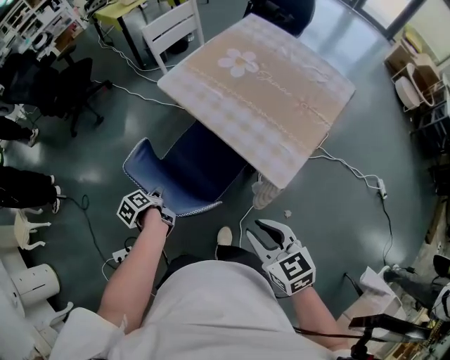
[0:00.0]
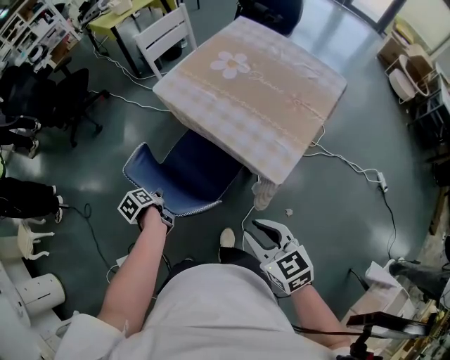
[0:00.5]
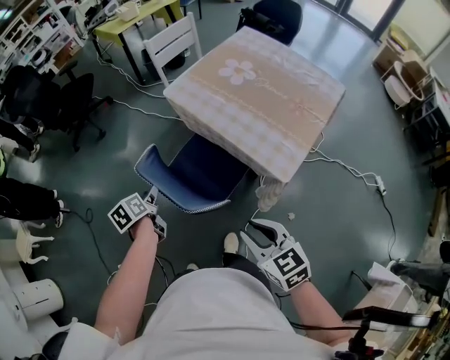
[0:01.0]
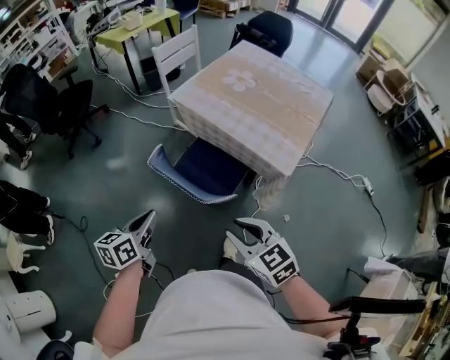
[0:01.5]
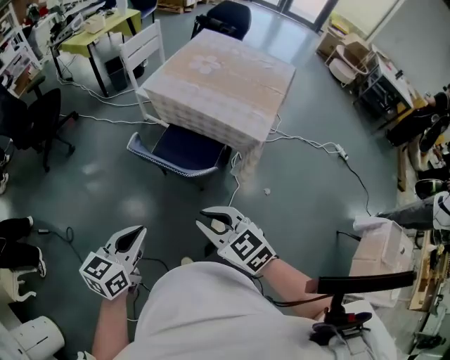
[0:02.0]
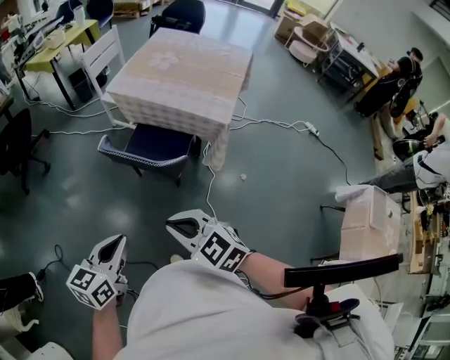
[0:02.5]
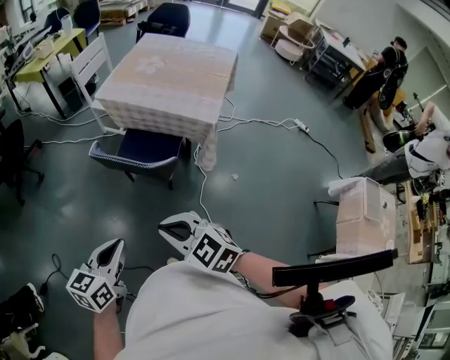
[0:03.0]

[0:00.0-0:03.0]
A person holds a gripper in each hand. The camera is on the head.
0:00.0 to 0:01.5: The right gripper heads to the left, covering roughly 15 cm; the left gripper is displaced upward, backward and to the left by approximately 25 cm, turns by about 60 degrees, and opens and closes again.
0:01.5 to 0:03.0: The left gripper shifts approximately 20 cm backward, and changes its angle by about 30 degrees; the right gripper is displaced backward and to the left by roughly 20 cm, and closes up.

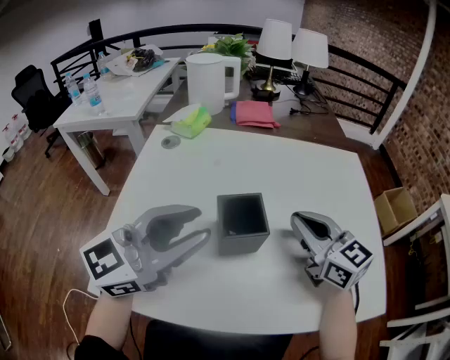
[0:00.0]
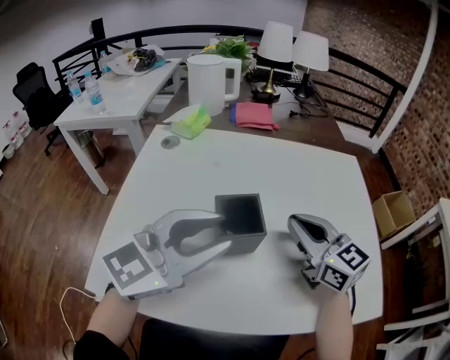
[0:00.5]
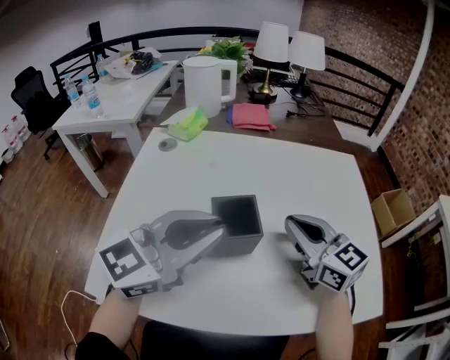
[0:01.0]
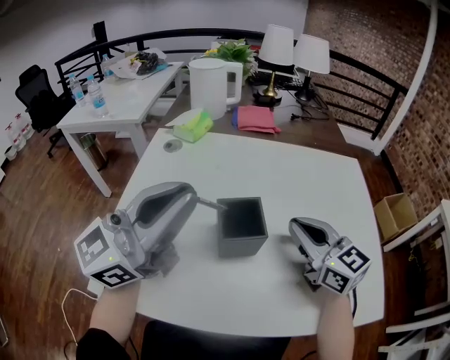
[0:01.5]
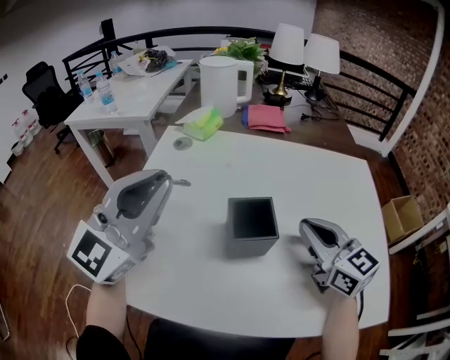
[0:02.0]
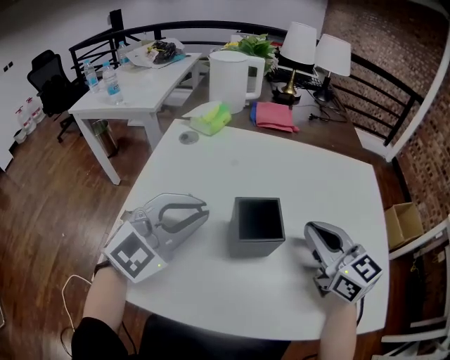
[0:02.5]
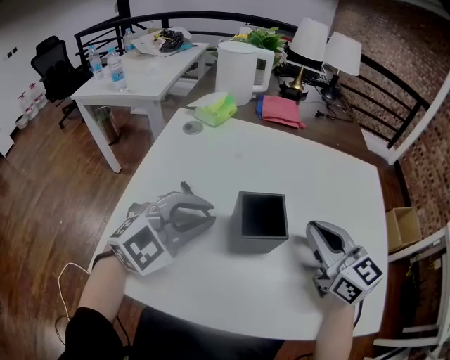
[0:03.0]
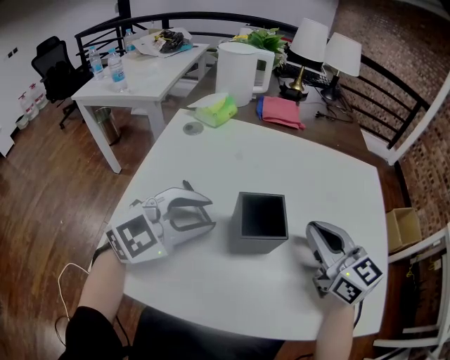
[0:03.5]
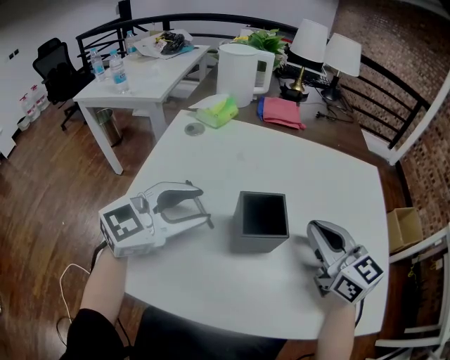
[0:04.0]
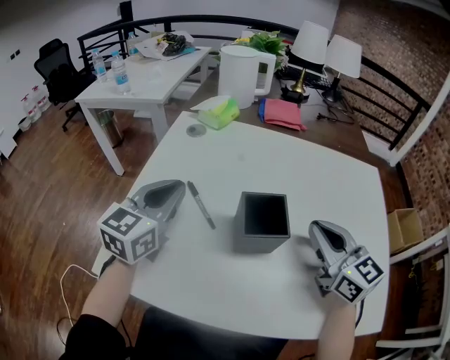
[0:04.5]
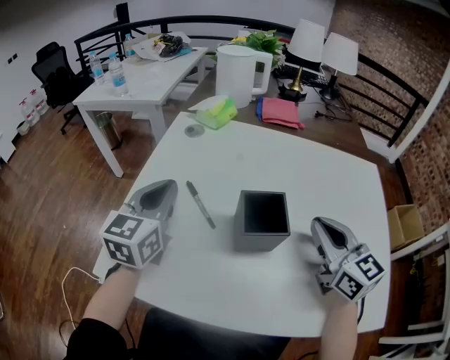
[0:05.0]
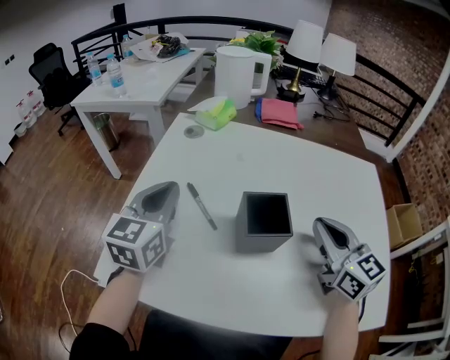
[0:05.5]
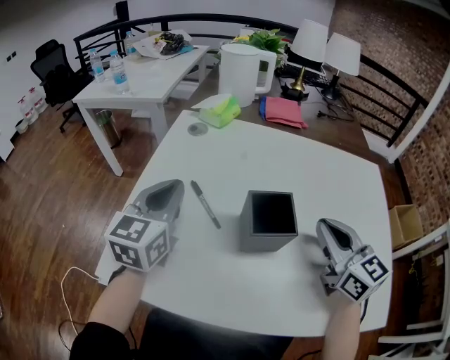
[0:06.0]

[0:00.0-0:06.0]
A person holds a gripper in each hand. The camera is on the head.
0:00.0 to 0:02.0: The left gripper shifts some 10 cm to the left, and turns by about 30 degrees.
0:02.0 to 0:04.0: The left gripper shifts about 10 cm downward, swivels approximately 30 degrees, and opens up.
0:04.0 to 0:06.0: The left gripper goes some 10 cm to the left and forward, turns by roughly 40 degrees, and closes.

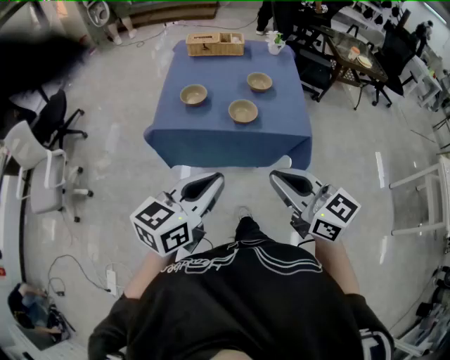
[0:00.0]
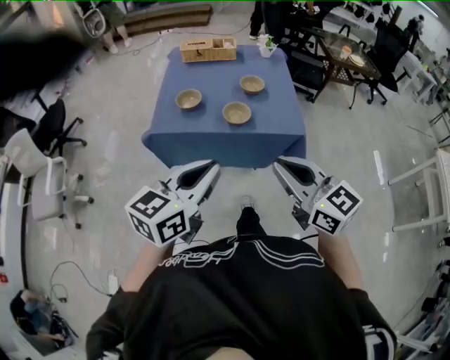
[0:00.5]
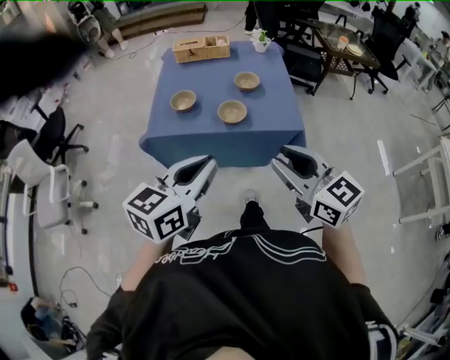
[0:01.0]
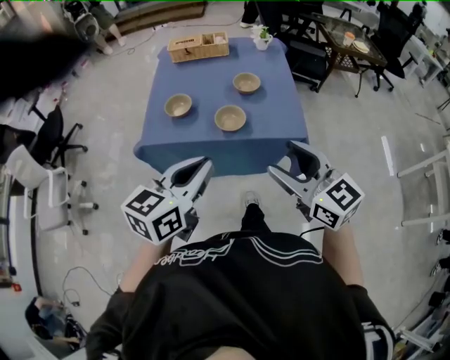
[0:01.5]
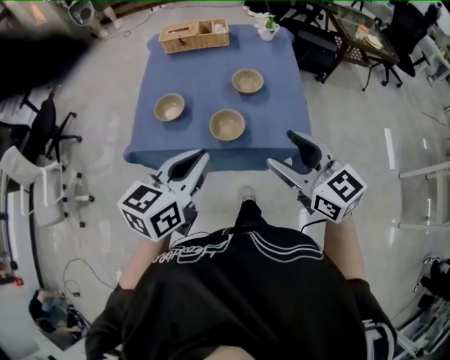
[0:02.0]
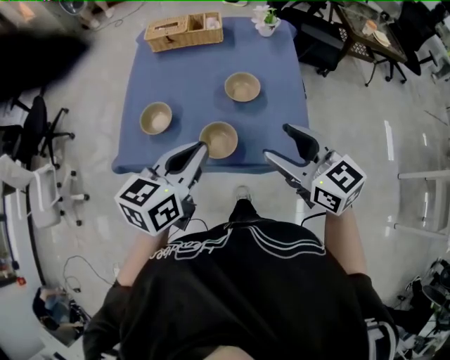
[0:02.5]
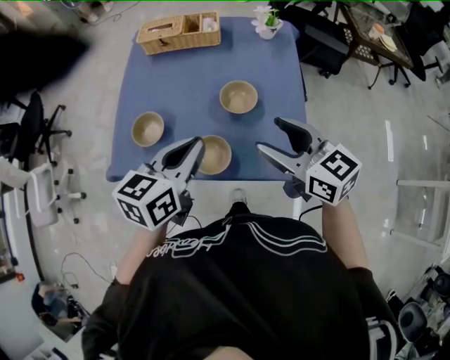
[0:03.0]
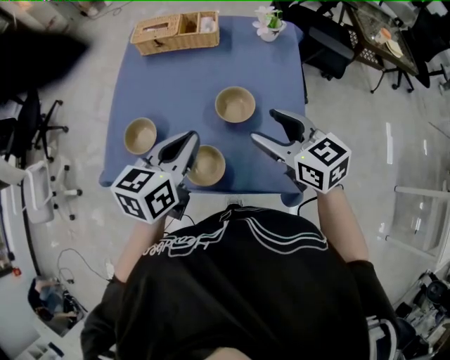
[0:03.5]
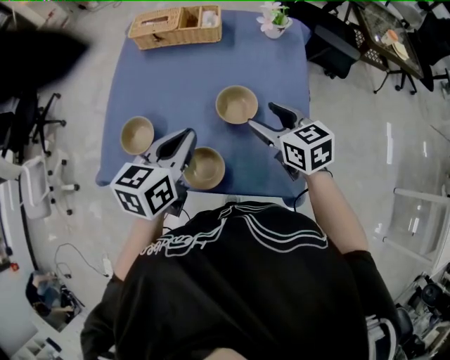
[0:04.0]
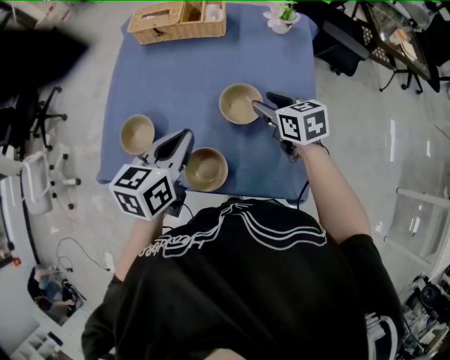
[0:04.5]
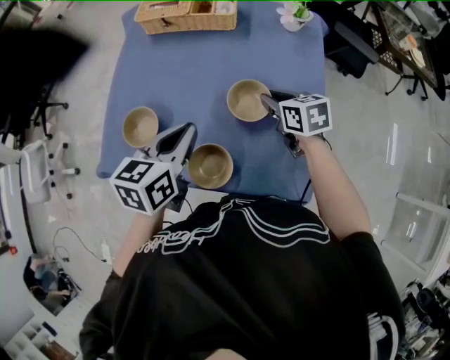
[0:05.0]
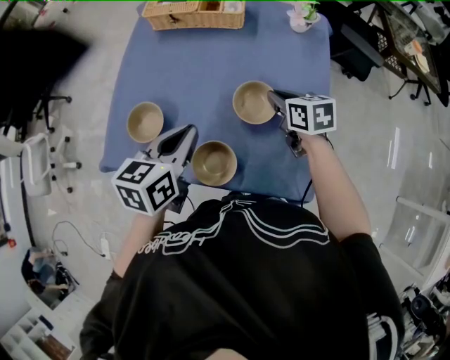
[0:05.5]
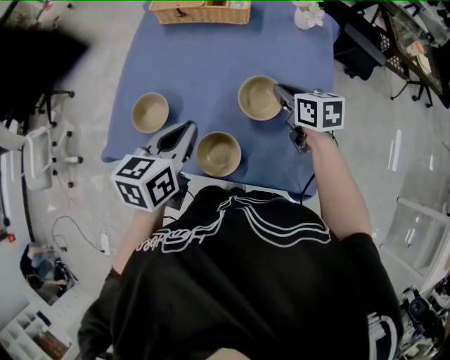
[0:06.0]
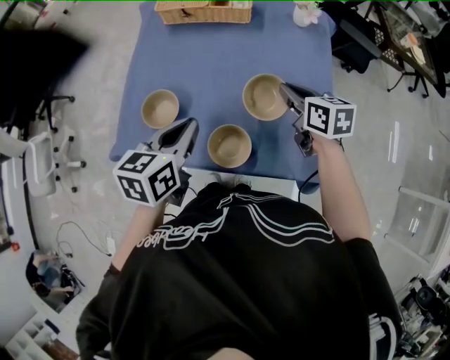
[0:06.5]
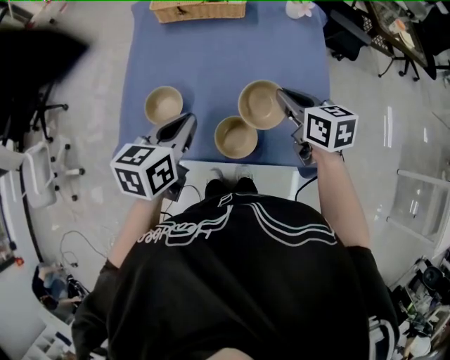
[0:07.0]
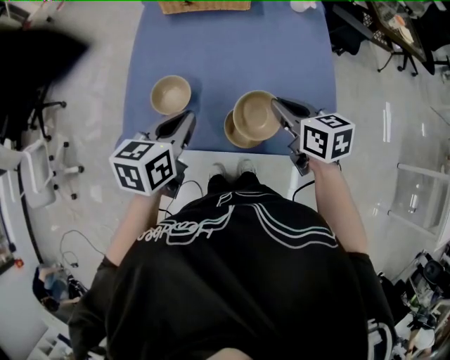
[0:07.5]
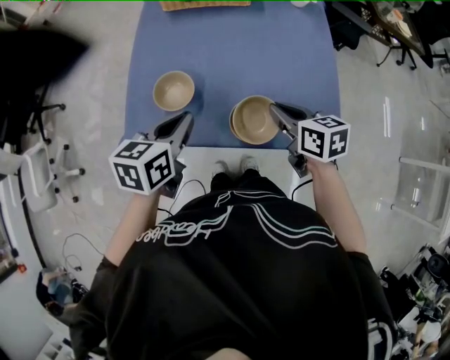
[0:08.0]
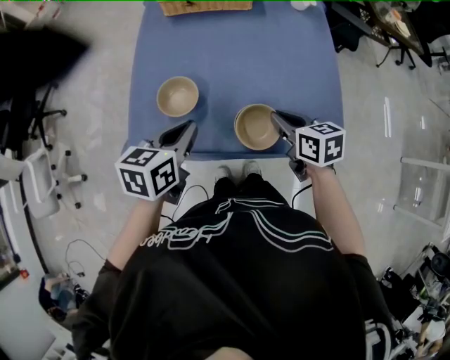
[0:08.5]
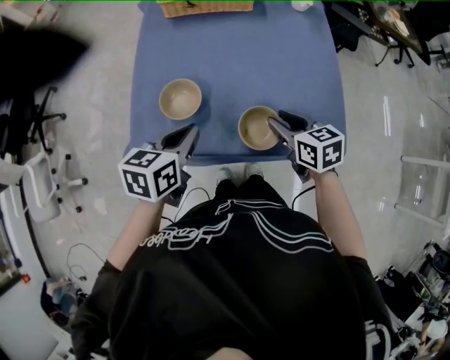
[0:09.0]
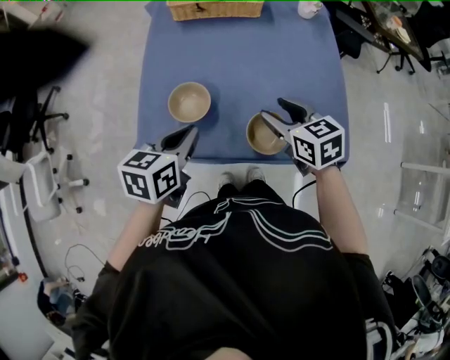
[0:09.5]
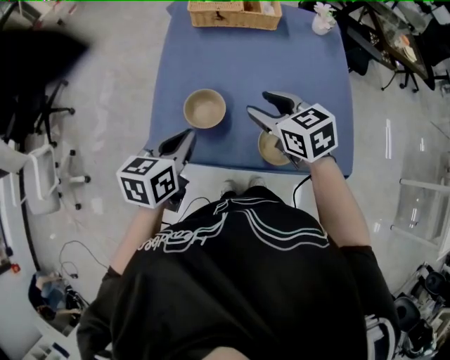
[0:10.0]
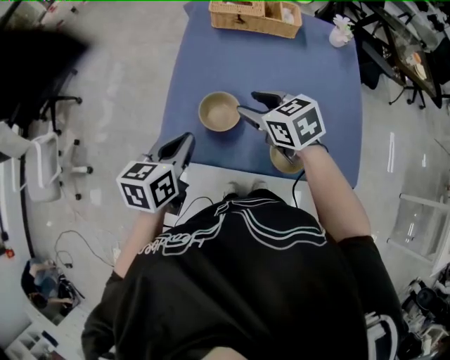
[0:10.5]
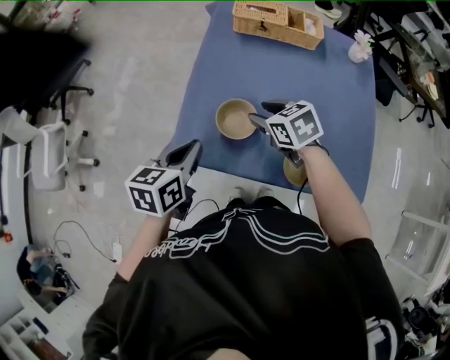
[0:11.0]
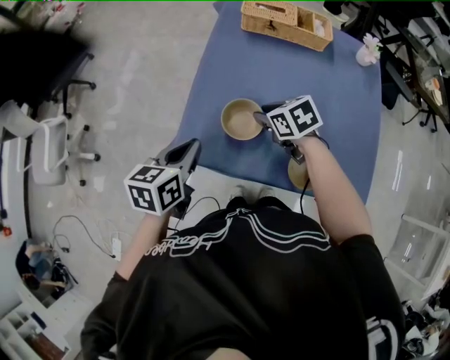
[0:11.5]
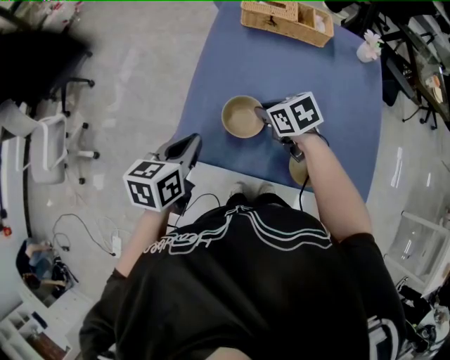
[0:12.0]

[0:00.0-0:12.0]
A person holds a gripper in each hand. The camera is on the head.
0:00.0 to 0:02.0: The left gripper shifts about 20 cm forward. Meanwhile the right gripper shifts roughly 25 cm forward and to the right, and opens up.
0:02.0 to 0:04.0: The grippers both shift forward and downward by about 30 cm.
0:04.0 to 0:06.0: The right gripper heads forward and downward, covering some 10 cm, and closes its fingers; the left gripper moves to the left, some 5 cm.
0:06.0 to 0:08.0: The left gripper heads to the left, covering roughly 10 cm, while the right gripper goes approximately 20 cm backward and to the left.
0:08.0 to 0:10.0: The right gripper shifts approximately 15 cm to the left and forward, rotates some 20 degrees, and opens; the left gripper shifts roughly 10 cm to the left.
0:10.0 to 0:12.0: The left gripper shifts approximately 10 cm to the left. The right gripper shifts about 15 cm downward, to the left and forward, swivels about 20 degrees, and closes.

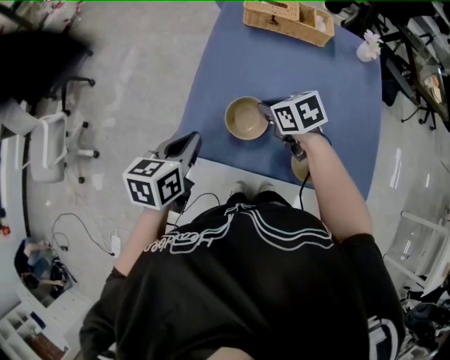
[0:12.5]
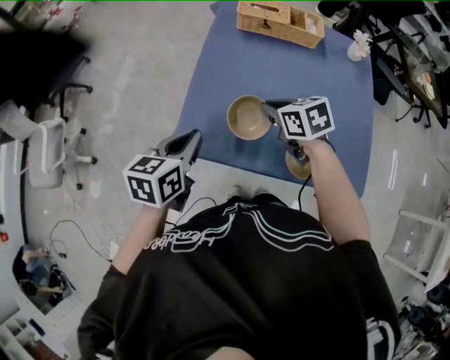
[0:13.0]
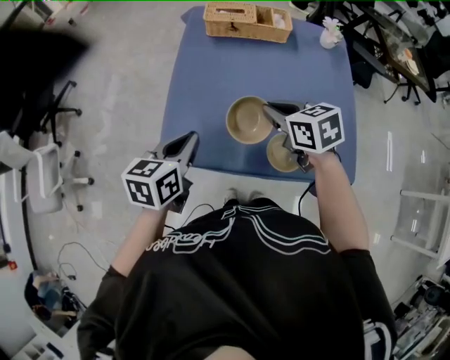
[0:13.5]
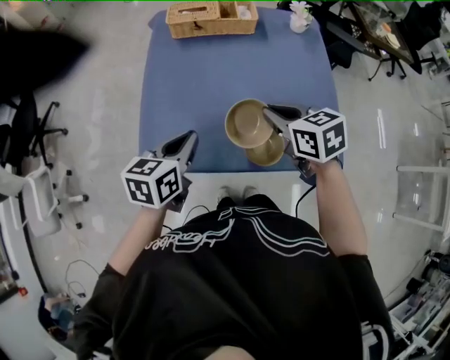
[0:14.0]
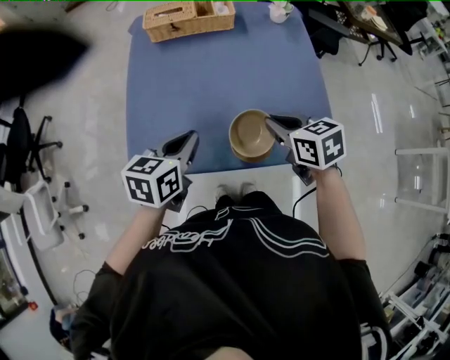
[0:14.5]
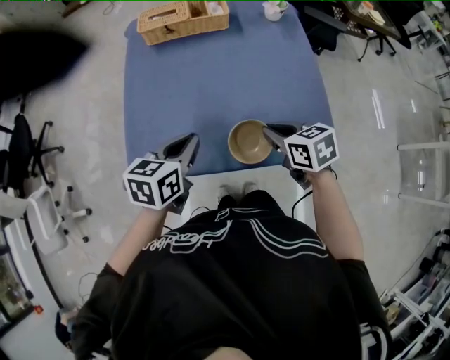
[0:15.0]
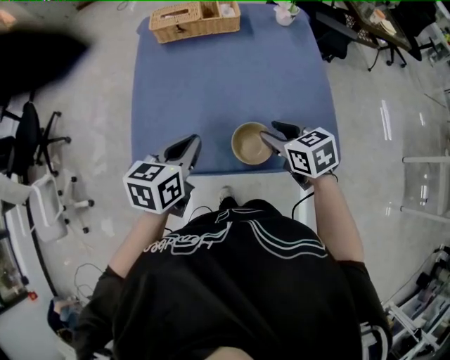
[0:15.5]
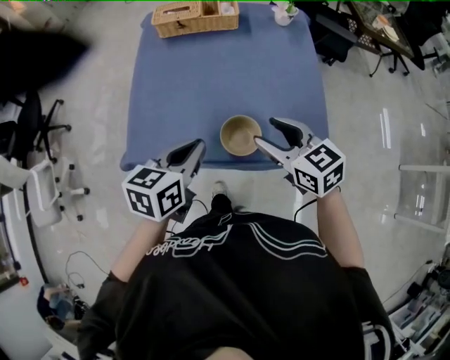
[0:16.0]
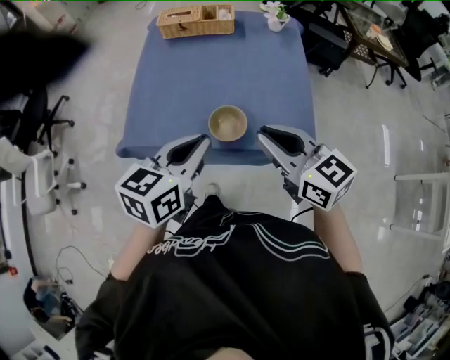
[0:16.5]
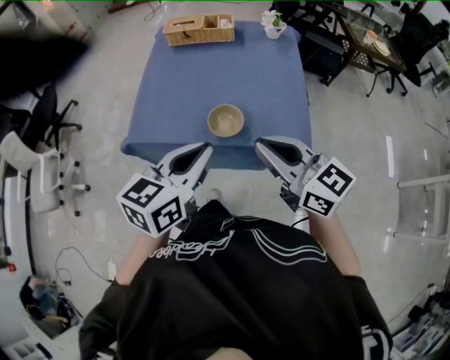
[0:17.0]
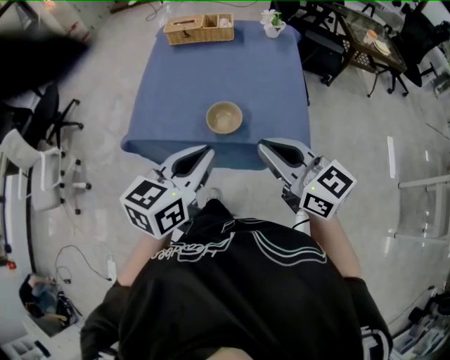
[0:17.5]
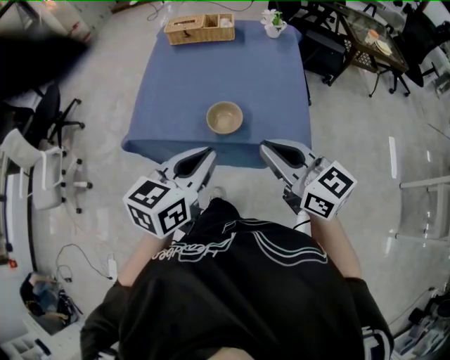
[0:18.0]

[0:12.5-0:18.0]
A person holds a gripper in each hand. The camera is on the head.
0:12.5 to 0:14.5: The right gripper goes some 25 cm to the right and backward, and changes its angle by roughly 20 degrees. The left gripper goes roughly 20 cm to the right, and changes its angle by about 20 degrees.
0:14.5 to 0:16.0: The left gripper heads backward and to the right, covering some 10 cm. The right gripper heads backward, covering approximately 5 cm, swivels some 20 degrees, and opens.
0:16.0 to 0:18.0: The right gripper shifts approximately 20 cm backward and upward, turns by roughly 20 degrees, and closes. Meanwhile the left gripper moves backward, upward and to the right, roughly 20 cm.
